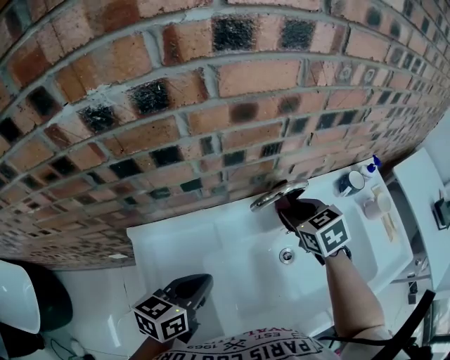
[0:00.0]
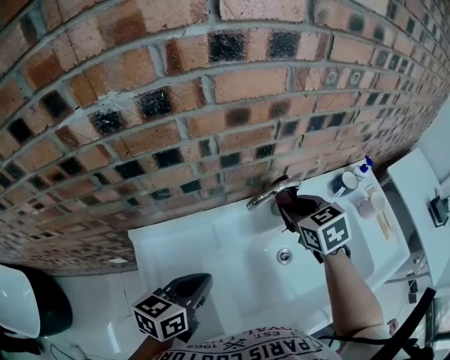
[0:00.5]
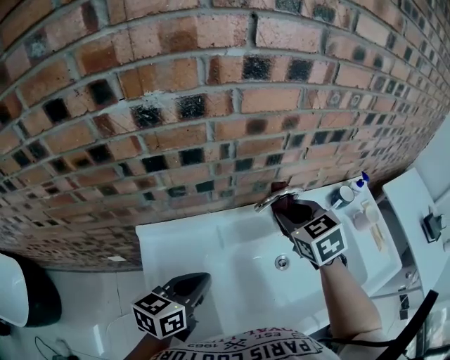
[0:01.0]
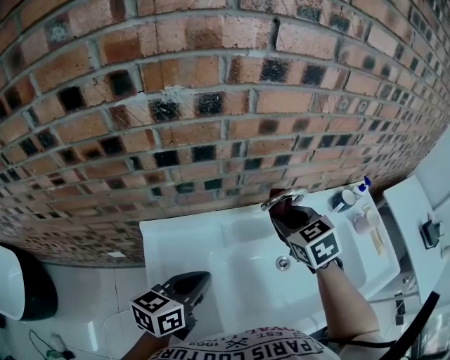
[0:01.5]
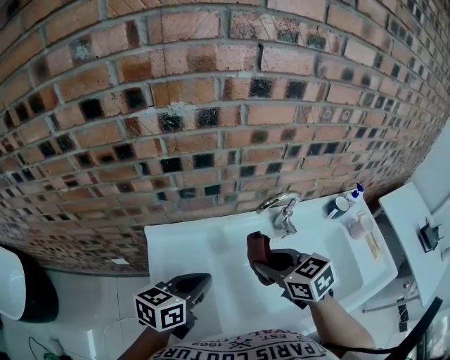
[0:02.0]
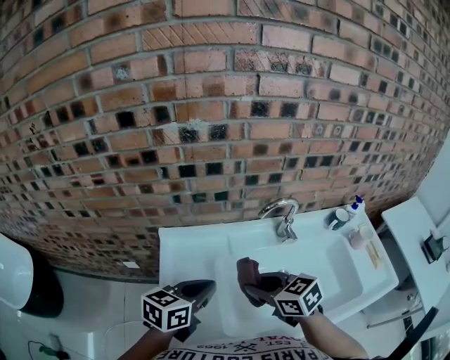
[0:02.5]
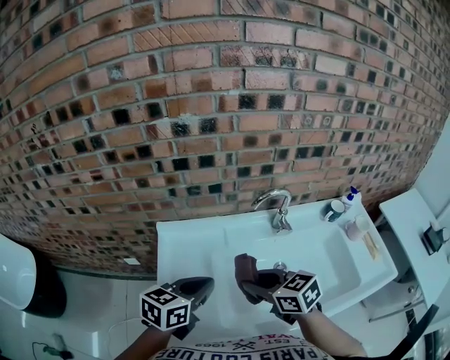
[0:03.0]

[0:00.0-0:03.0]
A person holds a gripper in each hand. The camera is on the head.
0:00.0 to 0:01.5: The left gripper ends up some 5 cm from where it was; the right gripper travels upward and to the left by about 10 cm.
0:01.5 to 0:03.0: The left gripper shifts roughly 10 cm backward, while the right gripper is displaced backward by about 20 cm, and turns by roughly 30 degrees.

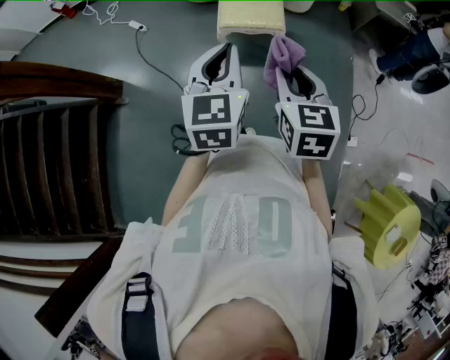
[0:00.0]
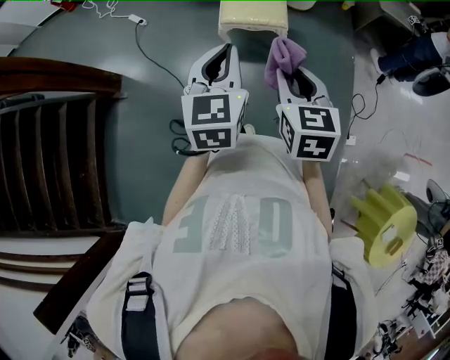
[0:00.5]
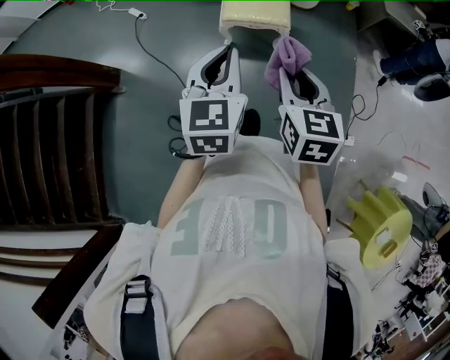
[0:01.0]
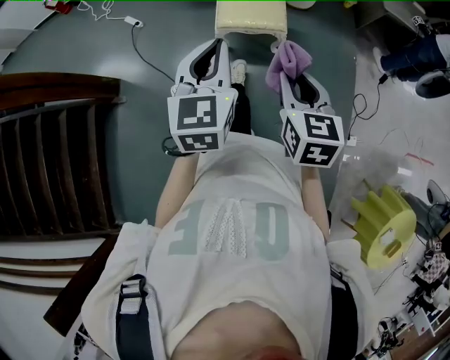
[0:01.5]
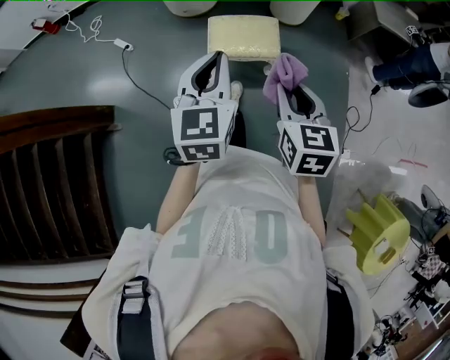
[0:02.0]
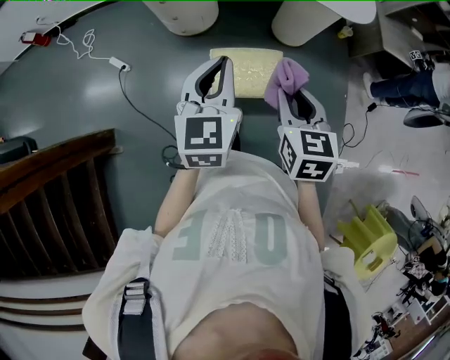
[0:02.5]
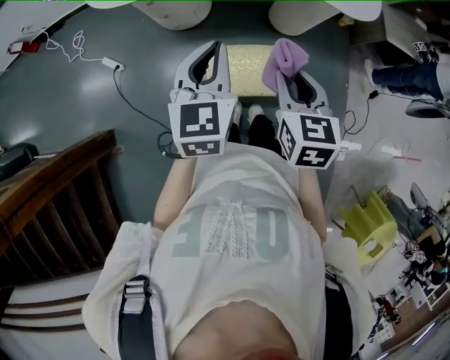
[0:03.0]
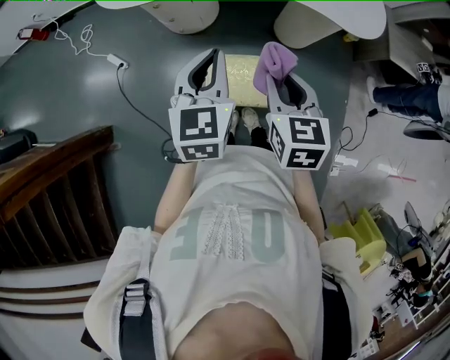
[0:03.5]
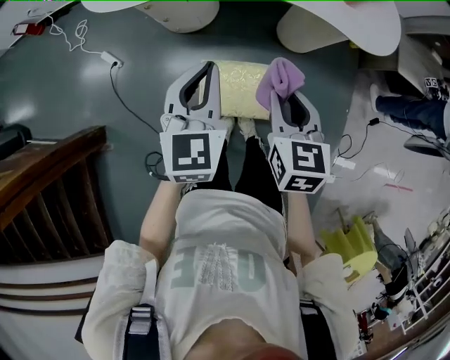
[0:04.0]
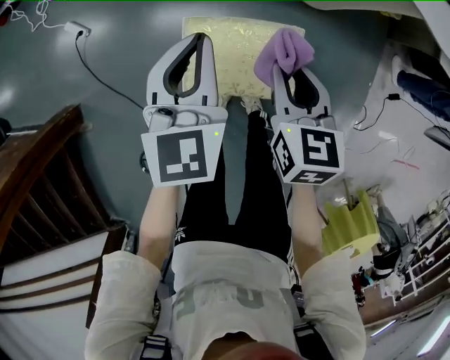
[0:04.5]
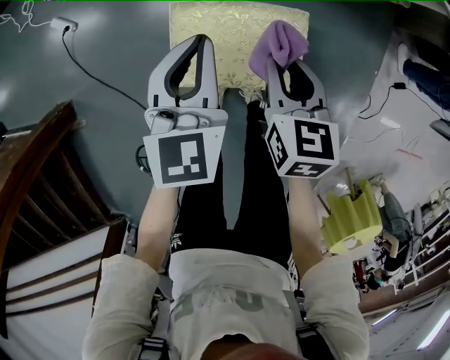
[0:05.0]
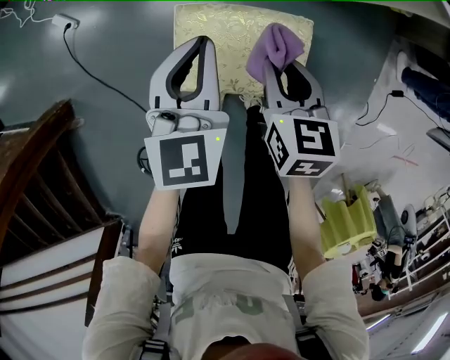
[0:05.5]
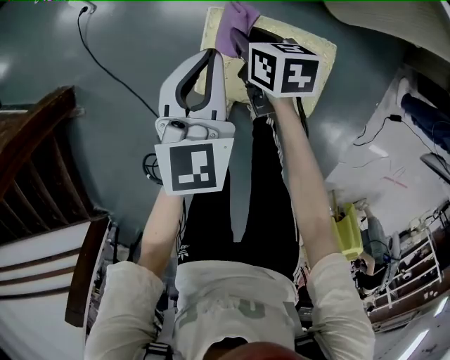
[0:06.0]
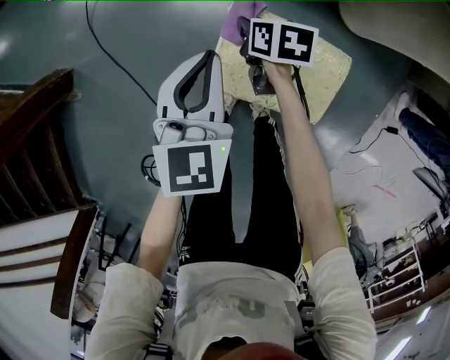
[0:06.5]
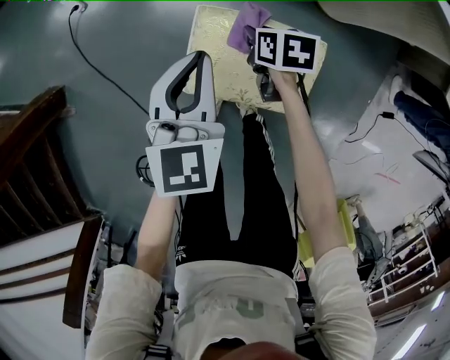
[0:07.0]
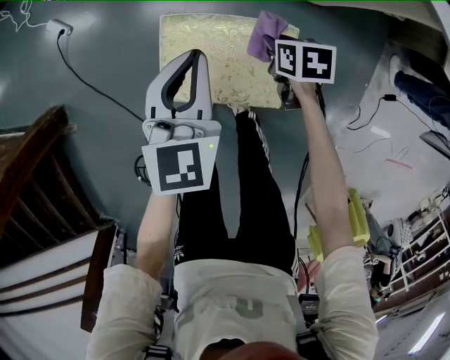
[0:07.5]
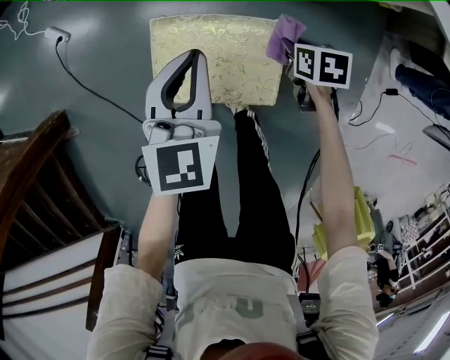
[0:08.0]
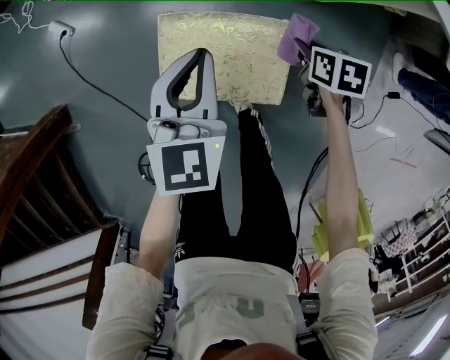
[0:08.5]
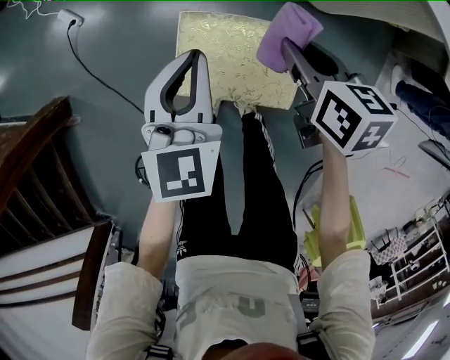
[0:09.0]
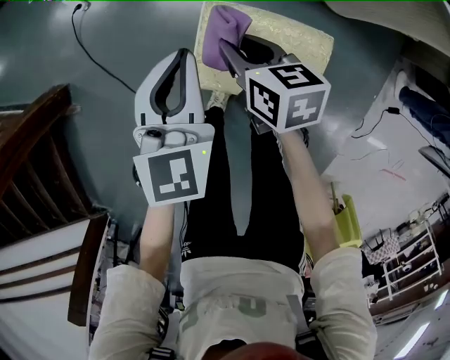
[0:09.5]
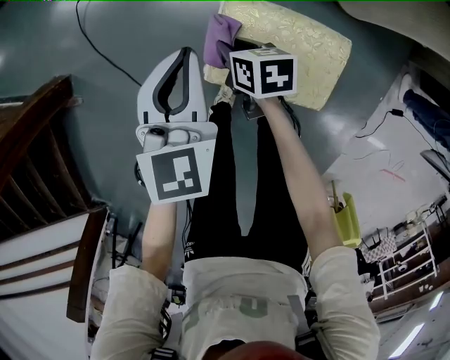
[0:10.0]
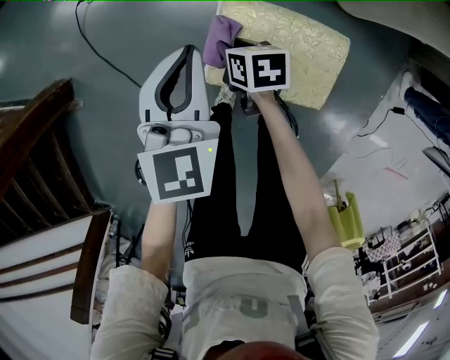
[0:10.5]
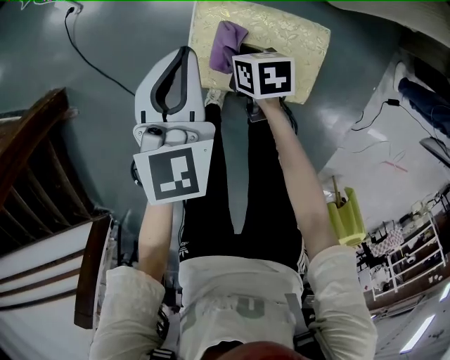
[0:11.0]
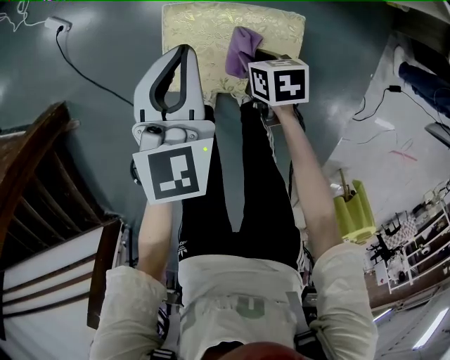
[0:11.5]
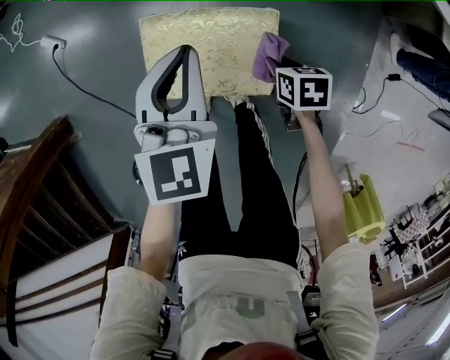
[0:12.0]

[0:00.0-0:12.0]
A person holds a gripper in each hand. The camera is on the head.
0:00.0 to 0:02.0: The grippers both shift forward by some 20 cm.
0:02.0 to 0:04.0: Both grippers move forward, some 35 cm.
0:04.0 to 0:06.0: Both grippers travel together downward, approximately 35 cm. The right gripper changes its angle by about 40 degrees.
0:06.0 to 0:08.0: The right gripper heads to the right and backward, covering about 25 cm, and changes its angle by about 20 degrees, while the left gripper shifts approximately 10 cm to the right.
0:08.0 to 0:10.0: The left gripper travels to the left by some 20 cm, while the right gripper travels to the left by roughly 30 cm, and rotates some 20 degrees.
0:10.0 to 0:12.0: The left gripper is displaced to the right by approximately 20 cm, while the right gripper shifts approximately 30 cm to the right and backward.

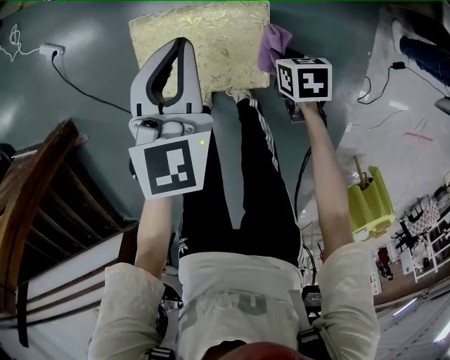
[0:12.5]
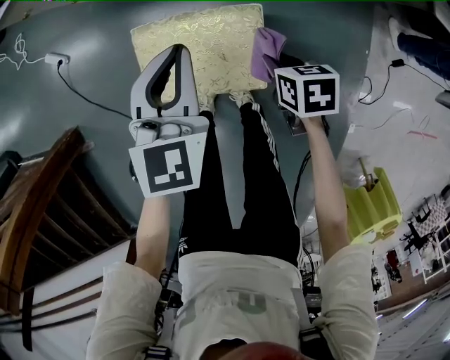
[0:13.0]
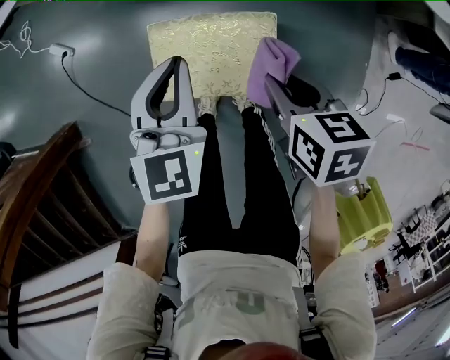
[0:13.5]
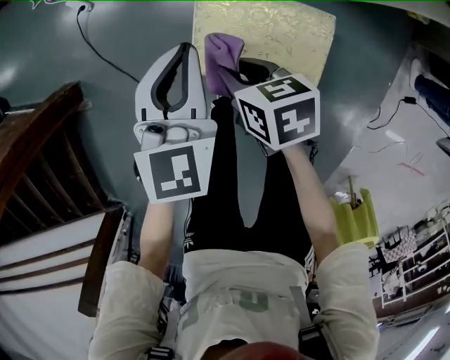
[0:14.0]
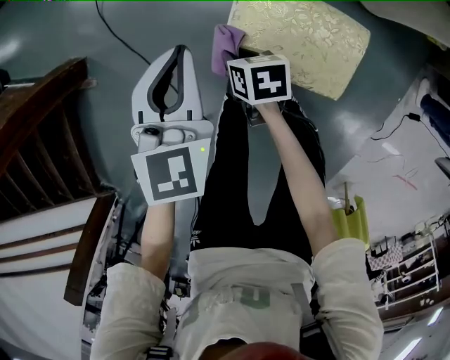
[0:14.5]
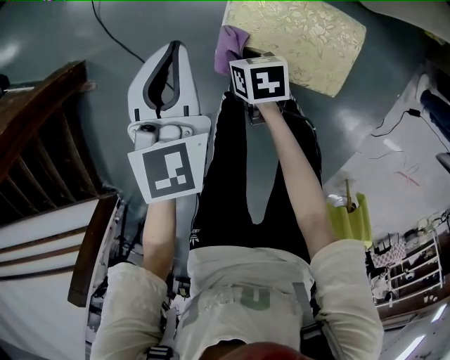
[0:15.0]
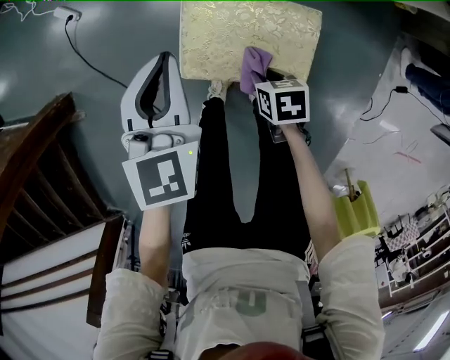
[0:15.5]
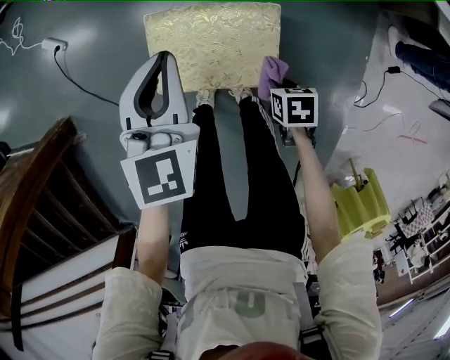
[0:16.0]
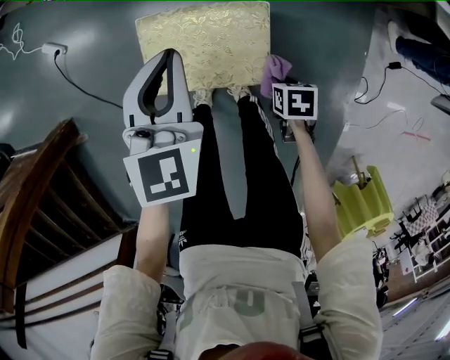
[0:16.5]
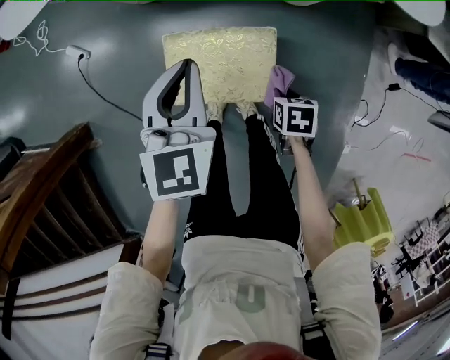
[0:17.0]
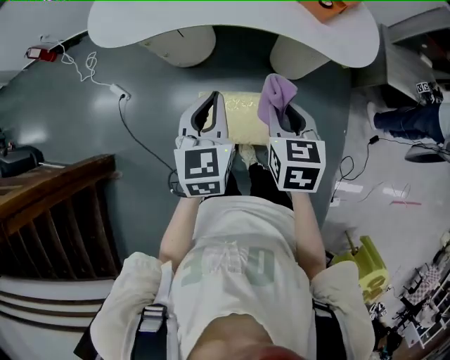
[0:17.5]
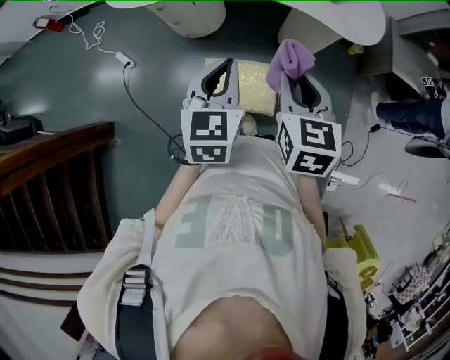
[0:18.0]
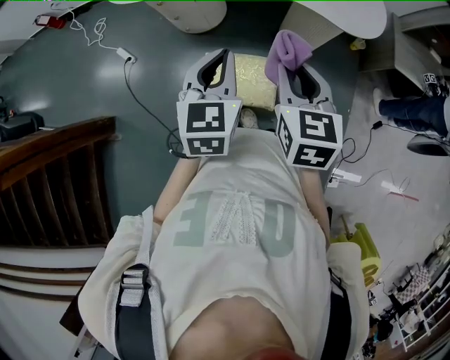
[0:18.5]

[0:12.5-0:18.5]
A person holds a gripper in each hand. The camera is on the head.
0:12.5 to 0:14.5: The left gripper ends up about 25 cm from where it was. Meanwhile the right gripper moves roughly 20 cm upward and comes back, and turns by some 20 degrees.
0:14.5 to 0:16.5: The right gripper changes place by about 35 cm, and turns by roughly 30 degrees. Meanwhile the left gripper changes place by approximately 20 cm.
0:16.5 to 0:18.5: The left gripper is displaced upward by approximately 30 cm, while the right gripper moves upward, roughly 50 cm, and angles its fingers upward, by some 50 degrees.

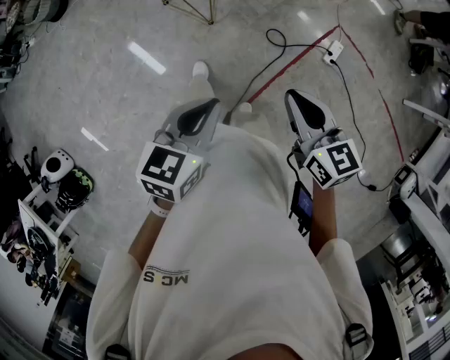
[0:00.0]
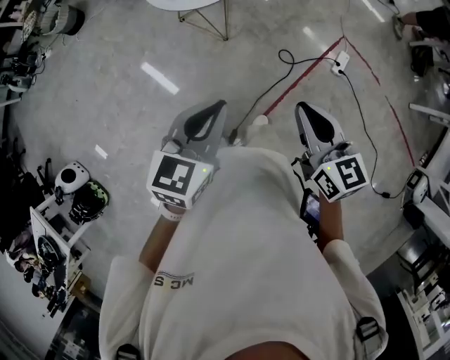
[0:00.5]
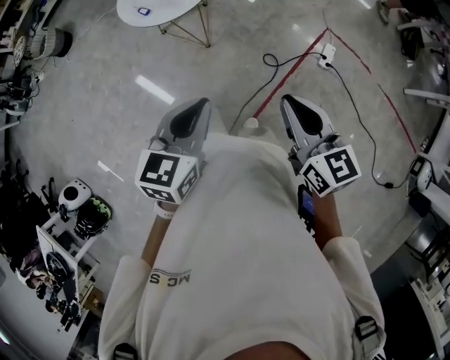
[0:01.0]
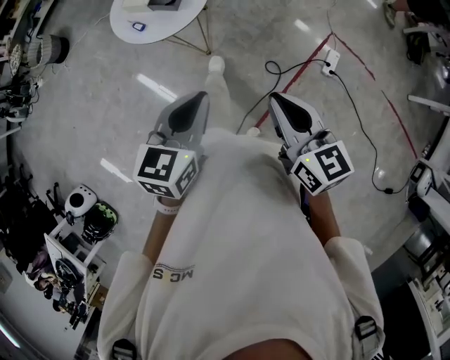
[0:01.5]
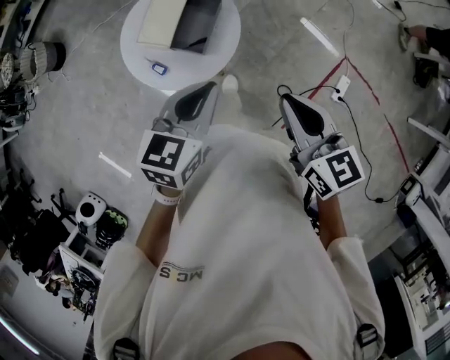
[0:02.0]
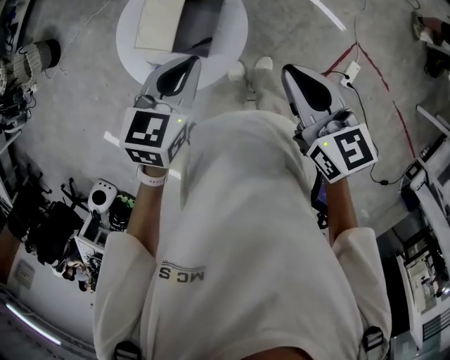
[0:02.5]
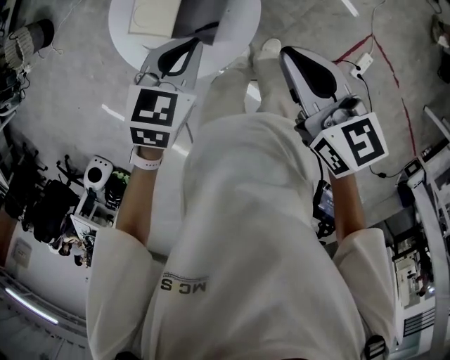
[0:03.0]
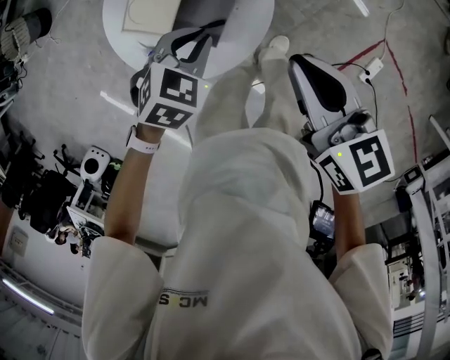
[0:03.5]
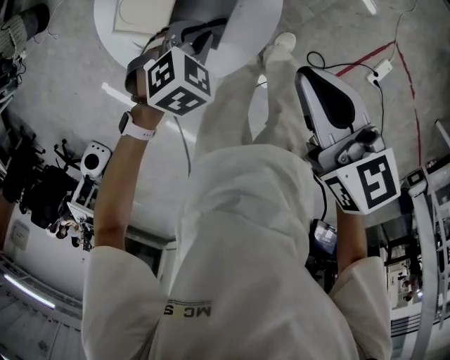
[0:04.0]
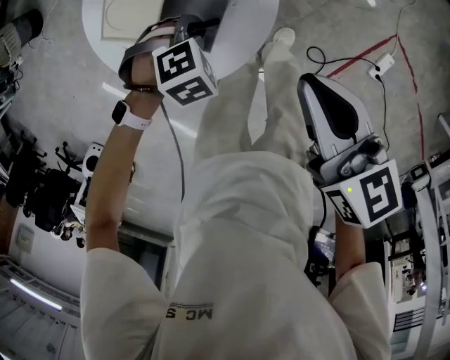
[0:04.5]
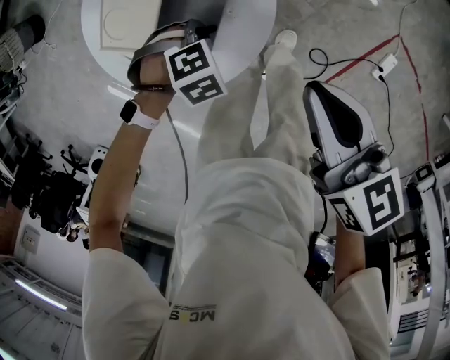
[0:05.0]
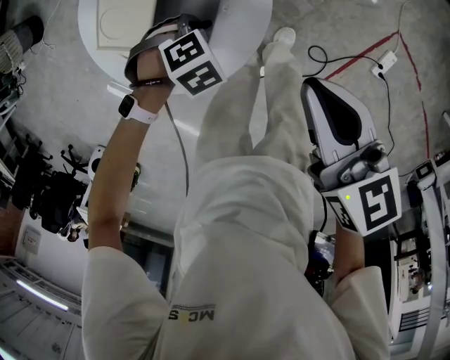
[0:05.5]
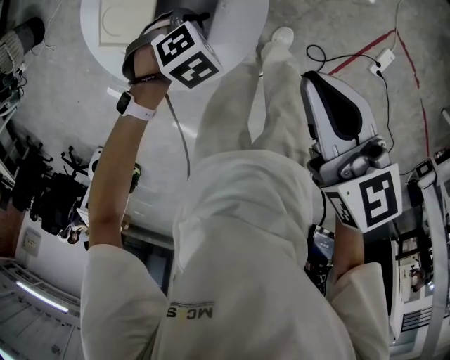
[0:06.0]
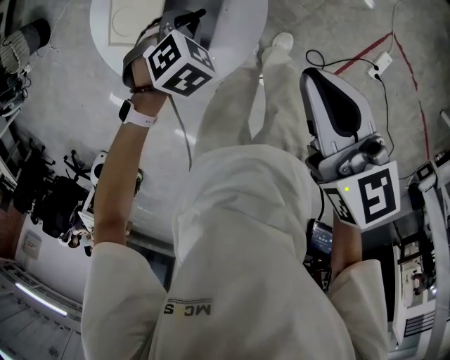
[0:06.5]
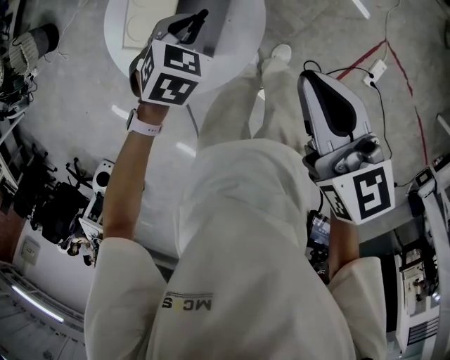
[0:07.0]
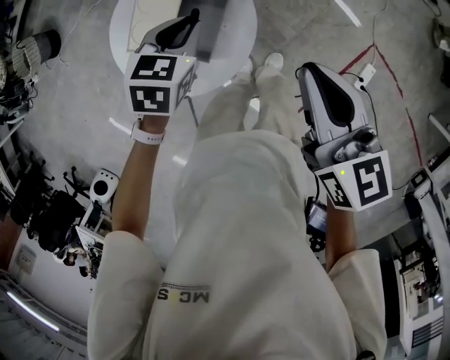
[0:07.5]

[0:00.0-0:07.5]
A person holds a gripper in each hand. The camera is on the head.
0:00.0 to 0:02.0: The pair of grippers is taken forward, about 50 cm.
0:02.0 to 0:04.0: The right gripper is displaced forward and downward by about 30 cm, while the left gripper moves downward and forward, some 40 cm, and points its fingers roughly 40 degrees further downward.
0:04.0 to 0:05.5: The left gripper travels downward by approximately 10 cm, and swivels approximately 20 degrees.
0:05.5 to 0:07.5: The left gripper goes approximately 25 cm upward, and angles its fingers upward, by approximately 40 degrees. The right gripper shifts roughly 15 cm upward.
